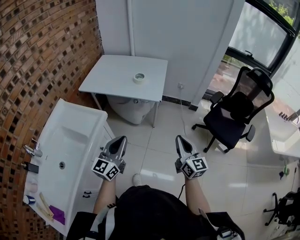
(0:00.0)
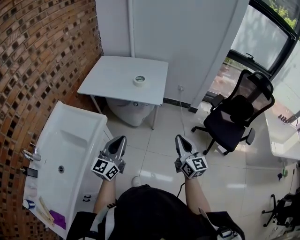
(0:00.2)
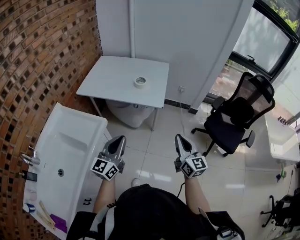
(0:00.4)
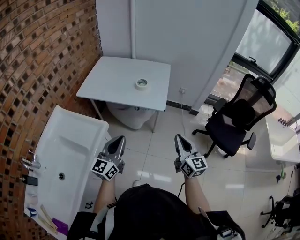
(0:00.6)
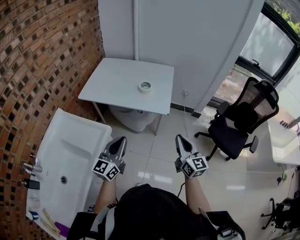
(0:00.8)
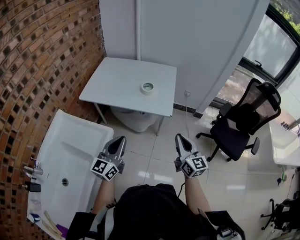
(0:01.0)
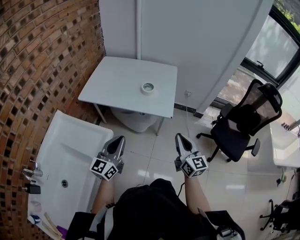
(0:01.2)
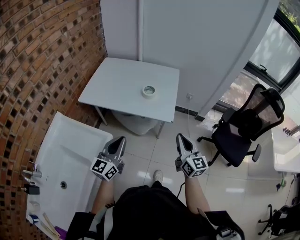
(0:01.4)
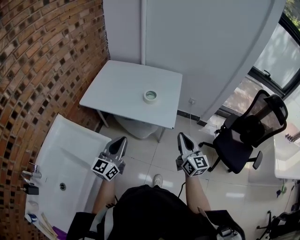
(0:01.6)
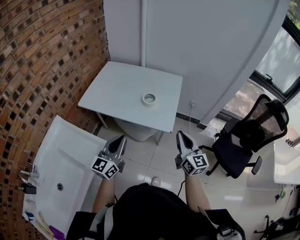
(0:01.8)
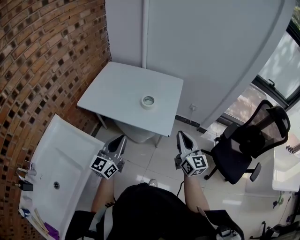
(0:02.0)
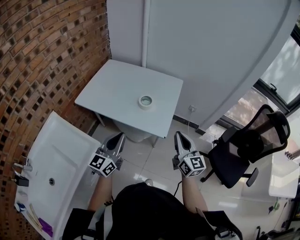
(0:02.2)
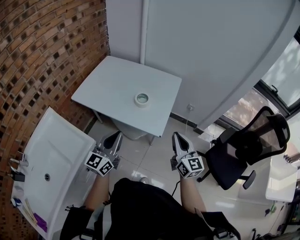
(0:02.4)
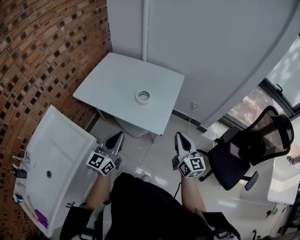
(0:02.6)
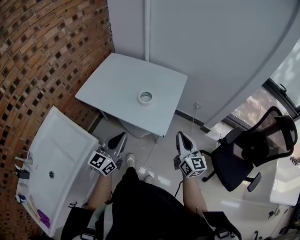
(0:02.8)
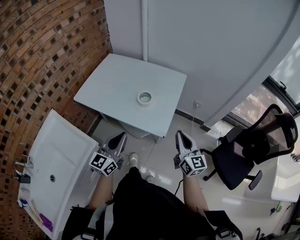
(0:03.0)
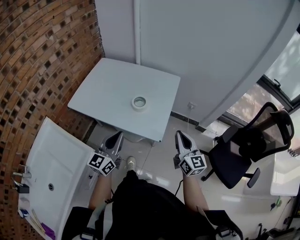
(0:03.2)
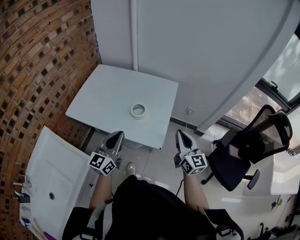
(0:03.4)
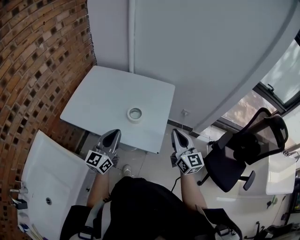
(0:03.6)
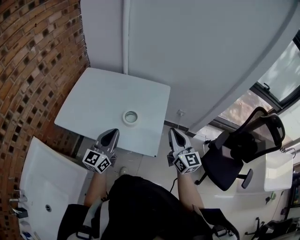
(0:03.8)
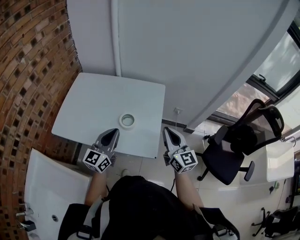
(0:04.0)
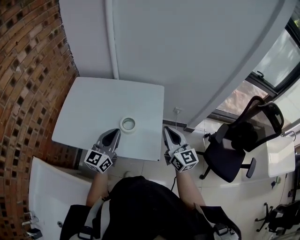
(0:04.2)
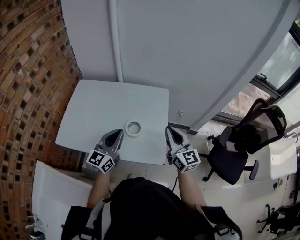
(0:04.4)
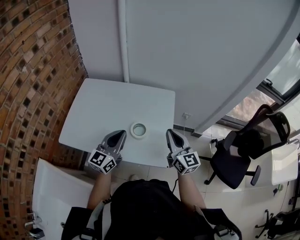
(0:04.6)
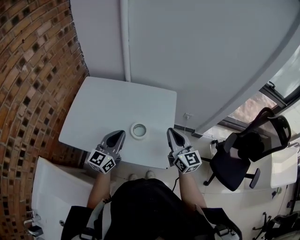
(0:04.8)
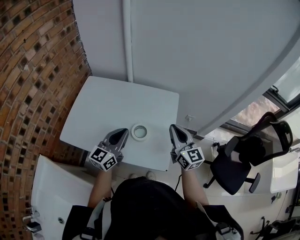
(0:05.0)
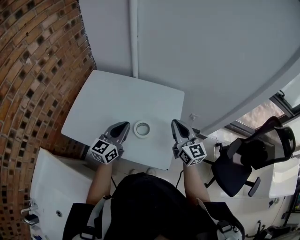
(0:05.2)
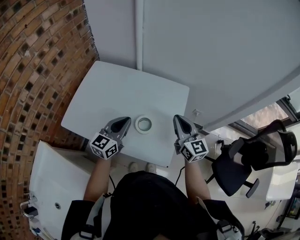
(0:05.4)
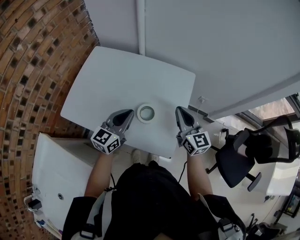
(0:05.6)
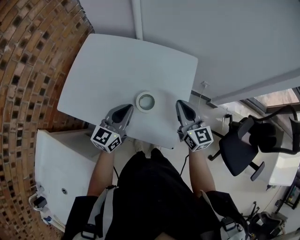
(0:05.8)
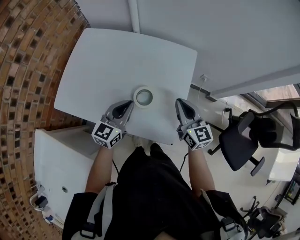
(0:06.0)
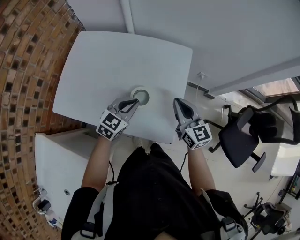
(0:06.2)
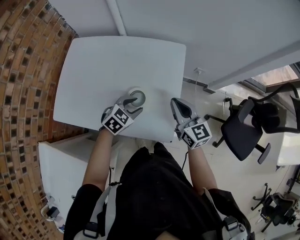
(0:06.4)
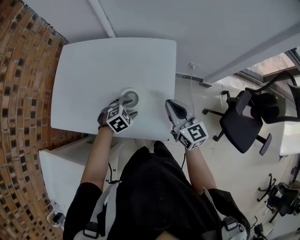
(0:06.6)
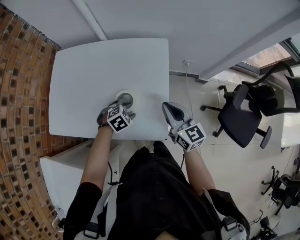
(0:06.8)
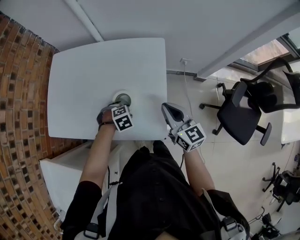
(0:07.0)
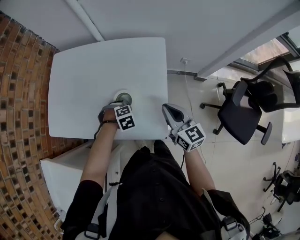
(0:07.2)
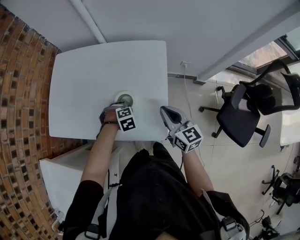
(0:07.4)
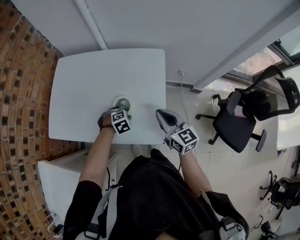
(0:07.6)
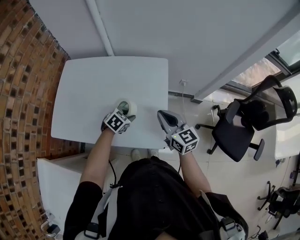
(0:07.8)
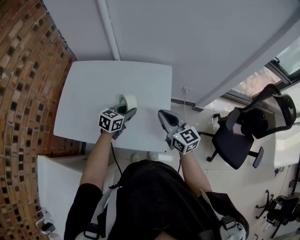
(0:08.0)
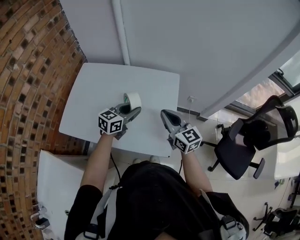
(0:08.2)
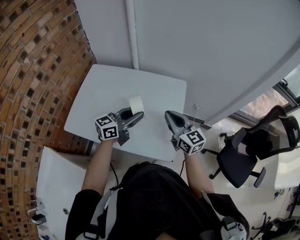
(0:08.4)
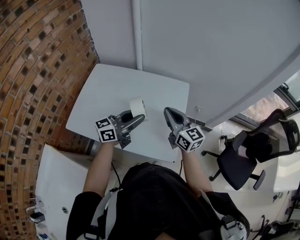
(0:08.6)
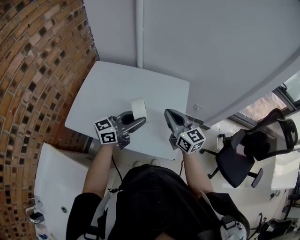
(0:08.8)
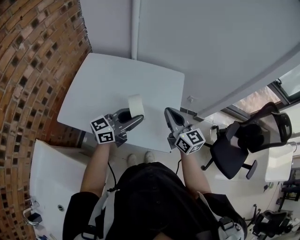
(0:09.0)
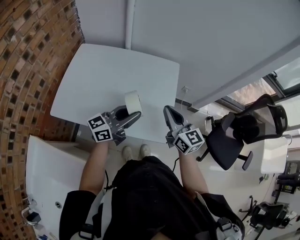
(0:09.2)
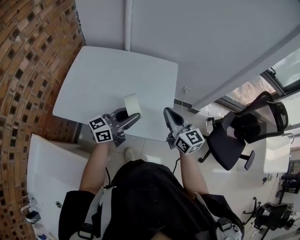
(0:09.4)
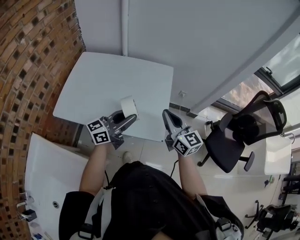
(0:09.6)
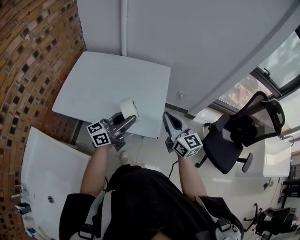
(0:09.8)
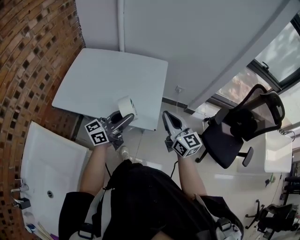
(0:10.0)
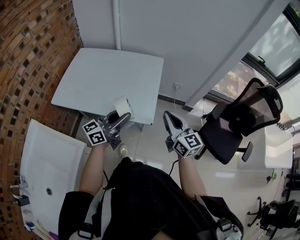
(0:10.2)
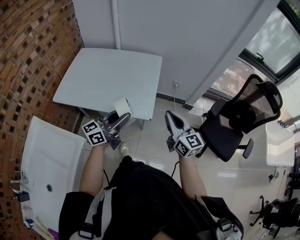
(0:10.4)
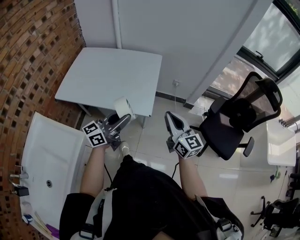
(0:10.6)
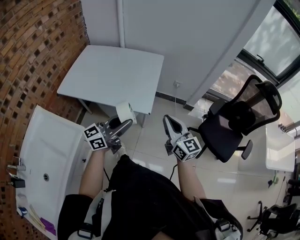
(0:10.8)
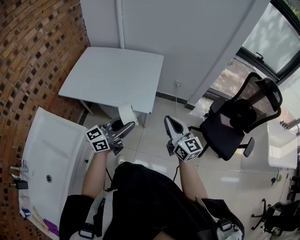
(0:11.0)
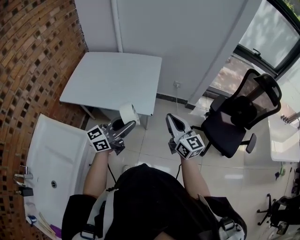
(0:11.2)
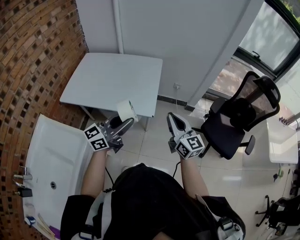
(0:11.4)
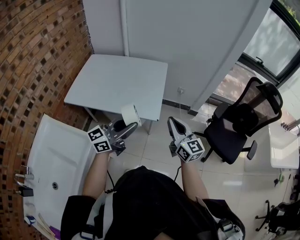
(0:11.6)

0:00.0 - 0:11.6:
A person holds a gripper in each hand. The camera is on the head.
0:00.0 - 0:01.4: The grippers both shift forward and to the left by about 20 cm.
0:01.4 - 0:02.8: Both grippers travel together forward and to the right, approximately 15 cm.
0:02.8 - 0:04.4: The right gripper heads forward and to the left, covering some 20 cm. The left gripper is displaced forward by some 25 cm.
0:04.4 - 0:05.8: The right gripper shifts roughly 10 cm forward and downward. The left gripper is displaced downward and forward by some 10 cm.
0:05.8 - 0:07.2: The left gripper travels downward by about 20 cm, angles its fingers downward, by approximately 70 degrees, and opens up. The right gripper changes place by about 10 cm.
0:07.2 - 0:08.8: The left gripper is displaced upward by some 30 cm, and angles its fingers upward, by roughly 90 degrees. Meanwhile the right gripper shifts by some 15 cm.
0:08.8 - 0:10.2: The two grippers go some 25 cm backward and to the right.
0:10.2 - 0:11.6: The right gripper heads backward, covering roughly 10 cm, while the left gripper is displaced backward and upward by about 10 cm.

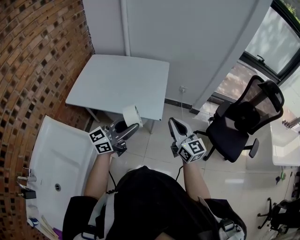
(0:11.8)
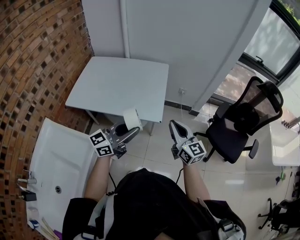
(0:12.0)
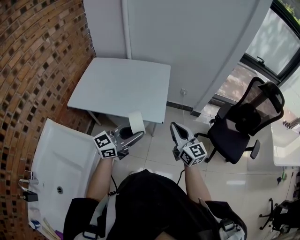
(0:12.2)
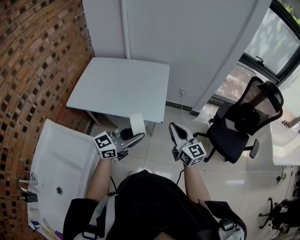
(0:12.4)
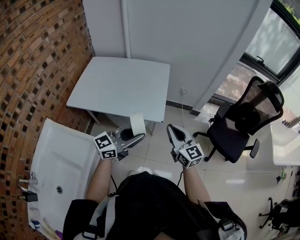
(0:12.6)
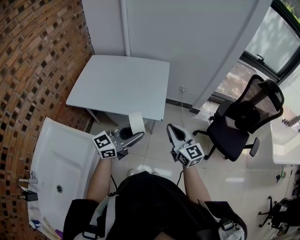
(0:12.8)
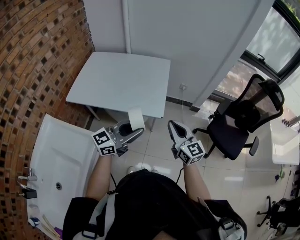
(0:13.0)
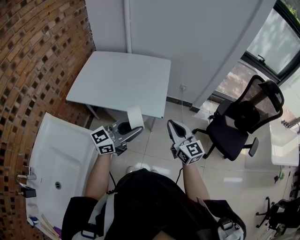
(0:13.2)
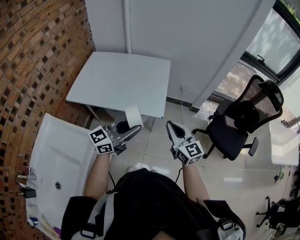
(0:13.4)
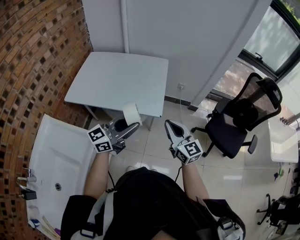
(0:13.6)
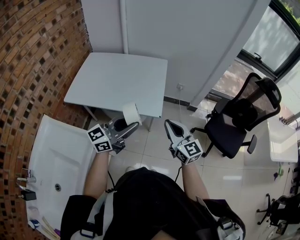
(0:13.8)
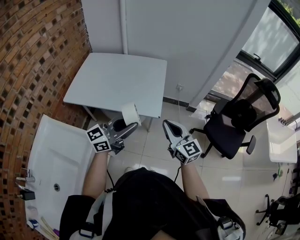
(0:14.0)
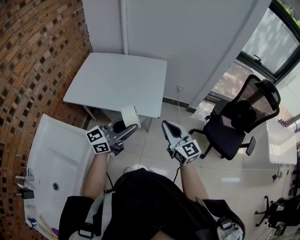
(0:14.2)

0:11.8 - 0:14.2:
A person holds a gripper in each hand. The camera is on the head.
0:11.8 - 0:14.2: The grippers stay close to where they were, moving slightly.

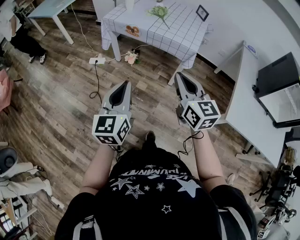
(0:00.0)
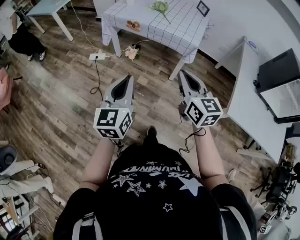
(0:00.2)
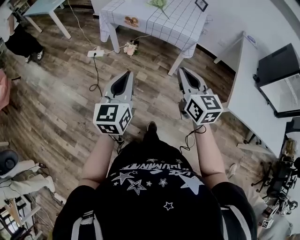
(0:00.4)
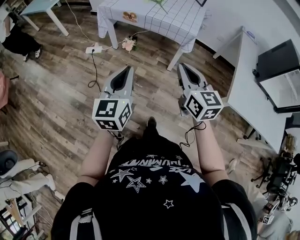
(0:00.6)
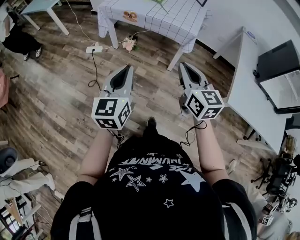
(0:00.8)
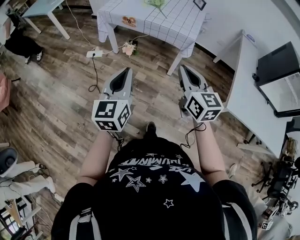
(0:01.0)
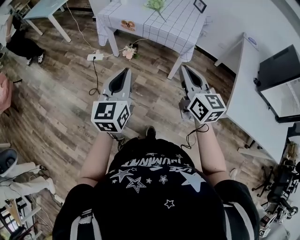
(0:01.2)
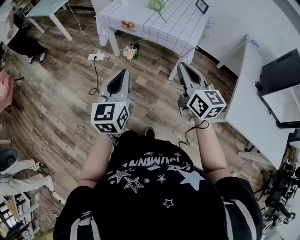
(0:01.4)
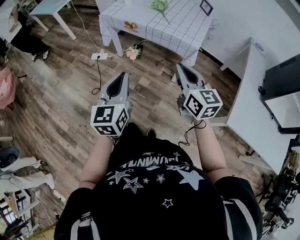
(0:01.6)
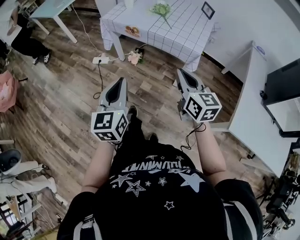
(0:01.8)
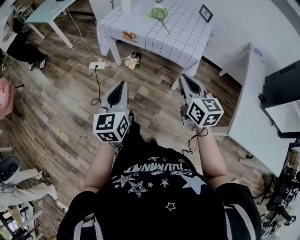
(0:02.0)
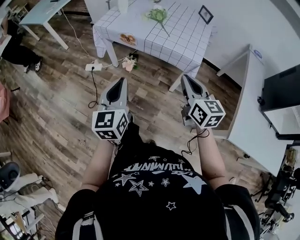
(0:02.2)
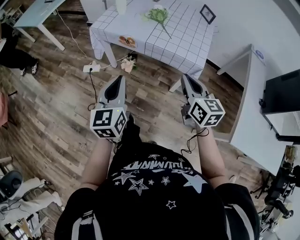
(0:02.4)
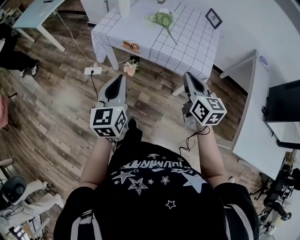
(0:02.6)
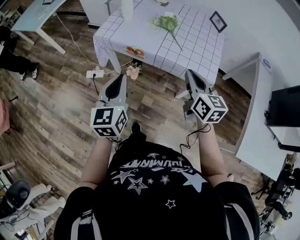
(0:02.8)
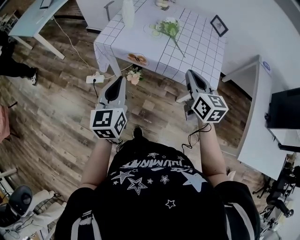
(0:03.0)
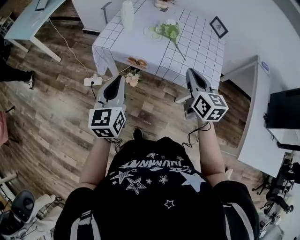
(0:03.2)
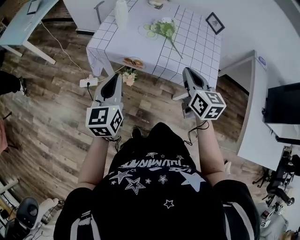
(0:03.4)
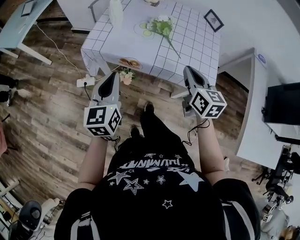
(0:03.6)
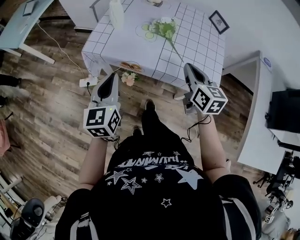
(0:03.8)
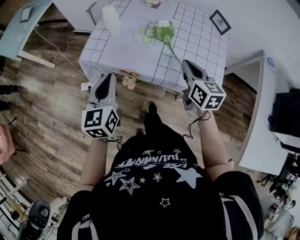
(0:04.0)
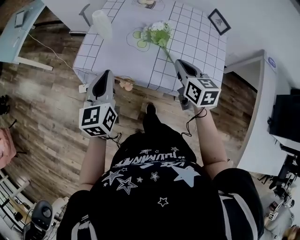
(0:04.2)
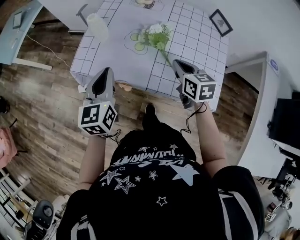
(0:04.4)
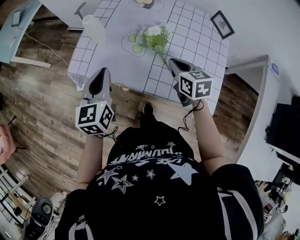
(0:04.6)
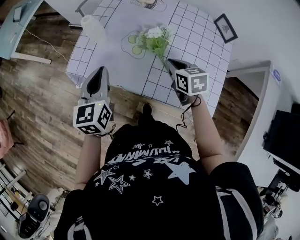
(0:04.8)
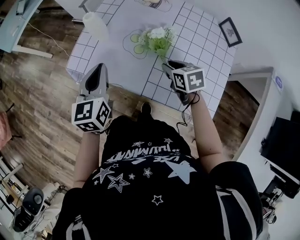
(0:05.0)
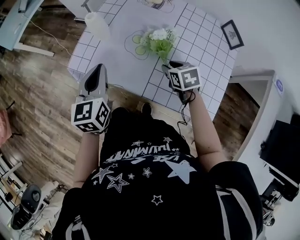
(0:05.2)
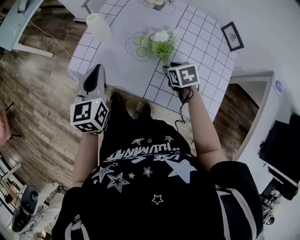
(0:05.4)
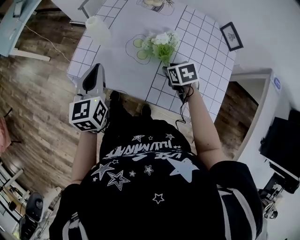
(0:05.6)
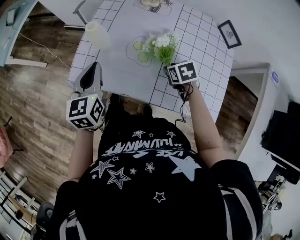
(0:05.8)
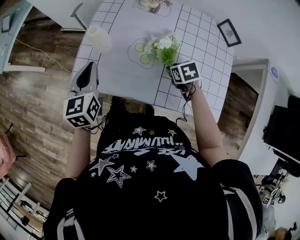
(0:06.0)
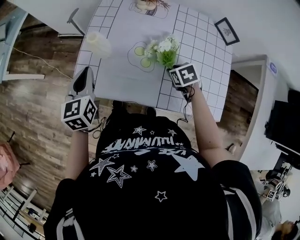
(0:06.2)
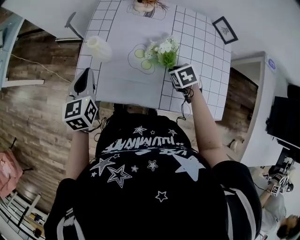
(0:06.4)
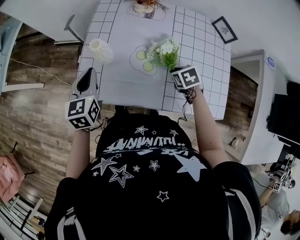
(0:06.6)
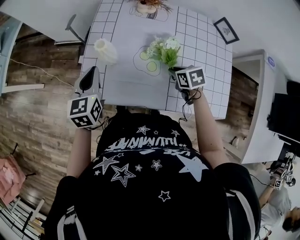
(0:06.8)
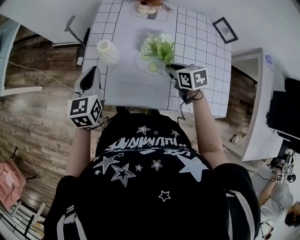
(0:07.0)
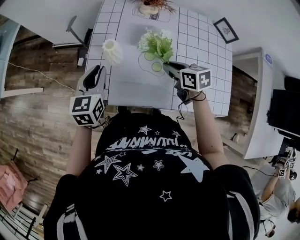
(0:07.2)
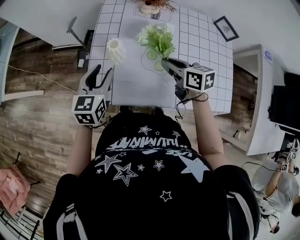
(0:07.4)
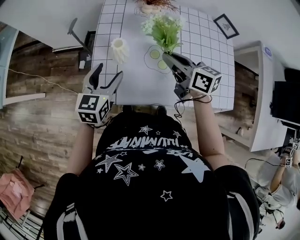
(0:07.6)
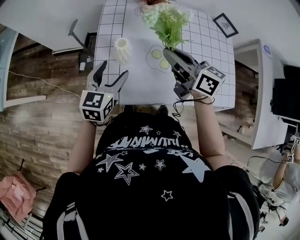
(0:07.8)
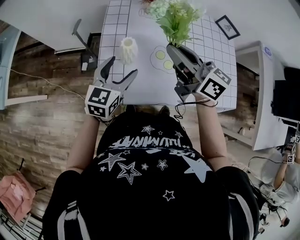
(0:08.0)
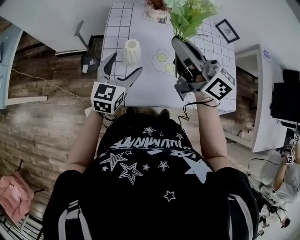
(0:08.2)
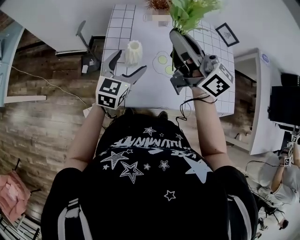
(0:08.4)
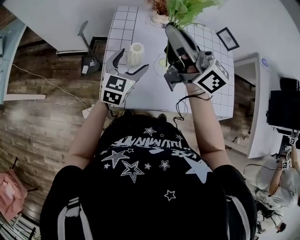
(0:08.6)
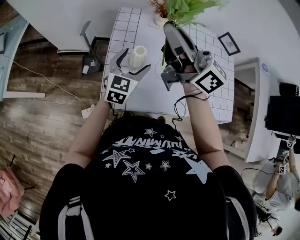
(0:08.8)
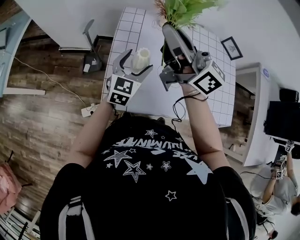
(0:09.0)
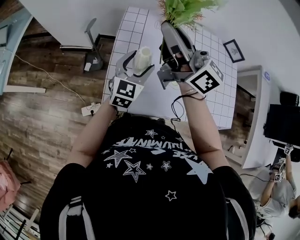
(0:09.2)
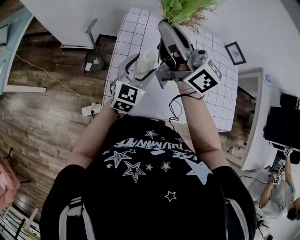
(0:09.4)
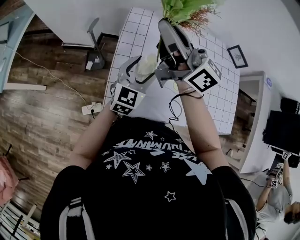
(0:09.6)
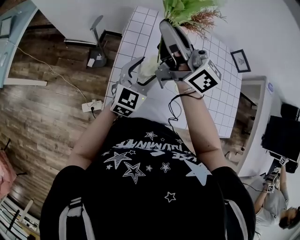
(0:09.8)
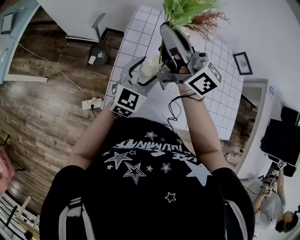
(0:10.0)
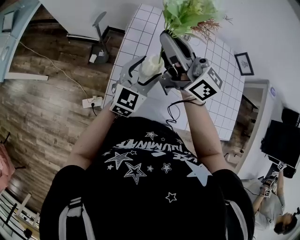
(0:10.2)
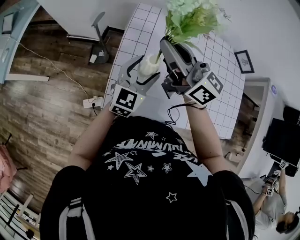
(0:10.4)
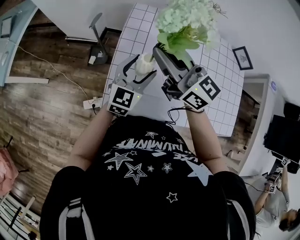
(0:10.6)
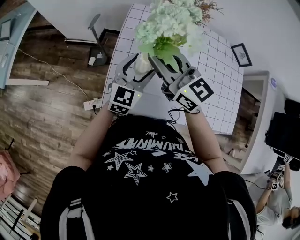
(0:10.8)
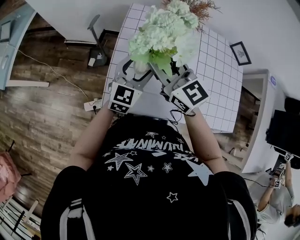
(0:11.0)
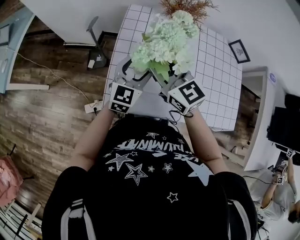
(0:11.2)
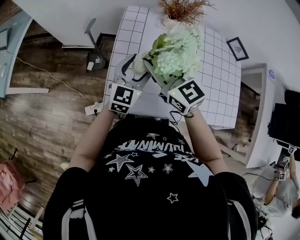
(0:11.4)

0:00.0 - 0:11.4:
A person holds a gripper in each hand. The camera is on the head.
0:00.0 - 0:01.4: The left gripper shifts approximately 5 cm forward. The right gripper heads to the right, covering some 5 cm.
0:01.4 - 0:02.8: The grippers both shift forward by some 30 cm.
0:02.8 - 0:04.2: Both grippers travel together forward, about 25 cm.
0:04.2 - 0:05.6: The left gripper shifts roughly 10 cm forward; the right gripper shifts approximately 20 cm downward and forward, points its fingers some 40 degrees further downward, and opens up.
0:05.6 - 0:07.2: The right gripper shifts some 10 cm to the left, upward and forward, rotates about 30 degrees, and closes; the left gripper shifts roughly 15 cm forward and to the left, and changes its angle by roughly 20 degrees.
0:07.2 - 0:08.6: The right gripper heads upward and to the left, covering roughly 30 cm, and tips its fingers upward by some 60 degrees, while the left gripper goes roughly 5 cm to the right, changes its angle by about 20 degrees, and opens up.
0:08.6 - 0:10.0: The right gripper travels forward and to the left by approximately 10 cm.
0:10.0 - 0:11.4: The right gripper travels downward and backward by about 15 cm, and angles its fingers downward, by approximately 30 degrees.